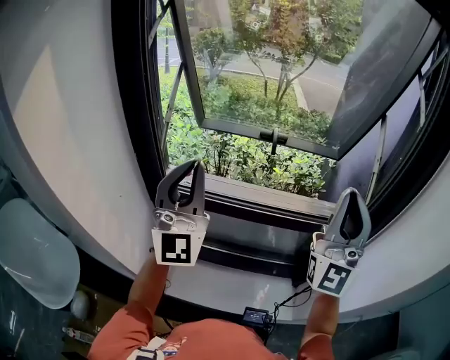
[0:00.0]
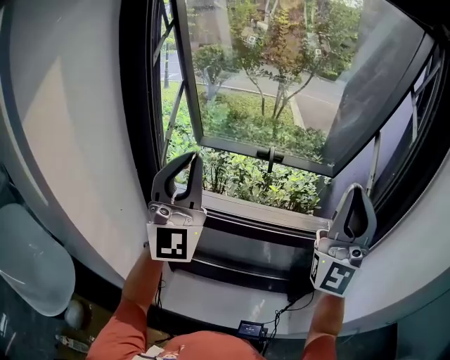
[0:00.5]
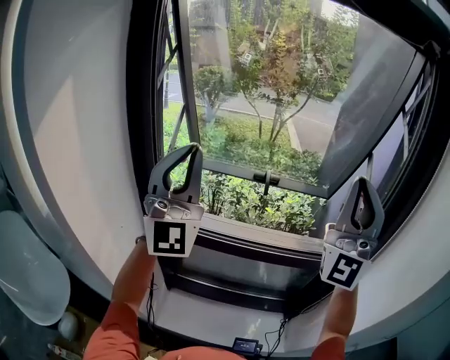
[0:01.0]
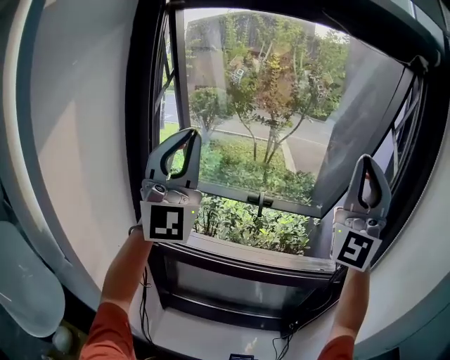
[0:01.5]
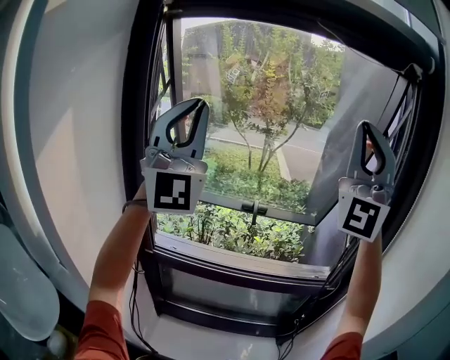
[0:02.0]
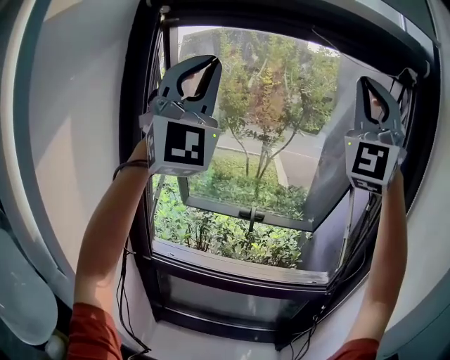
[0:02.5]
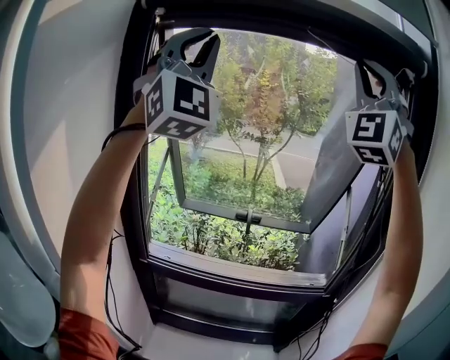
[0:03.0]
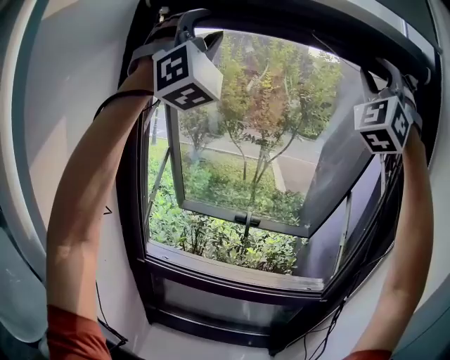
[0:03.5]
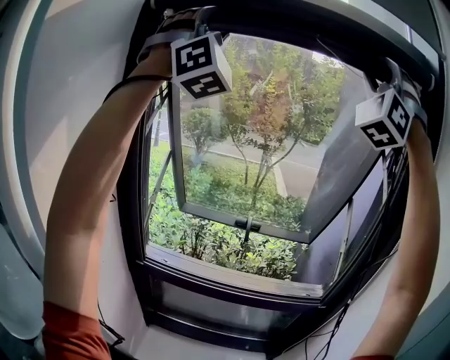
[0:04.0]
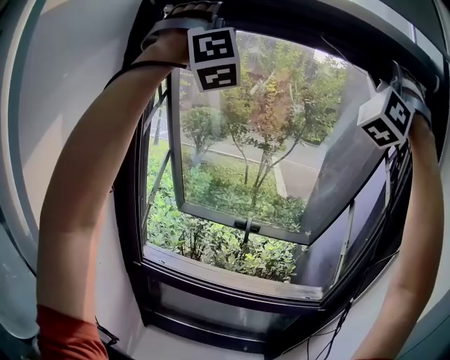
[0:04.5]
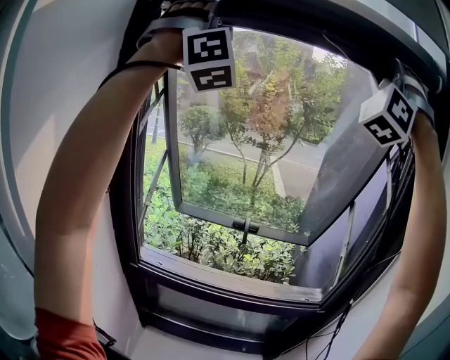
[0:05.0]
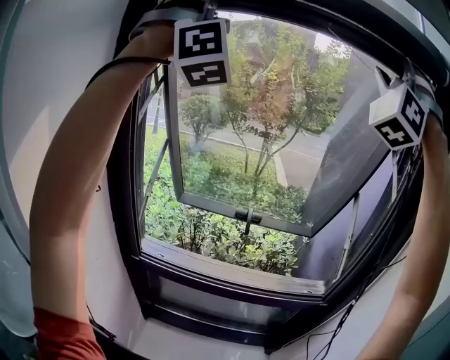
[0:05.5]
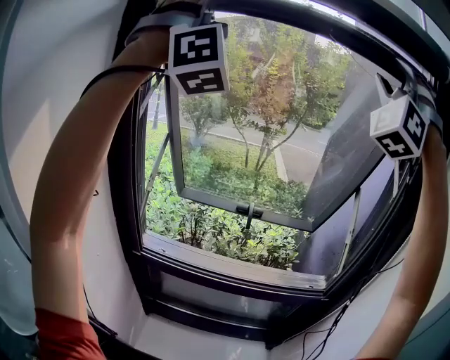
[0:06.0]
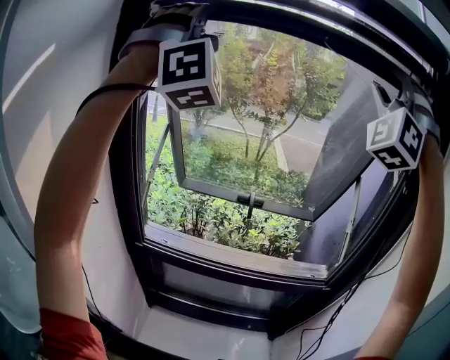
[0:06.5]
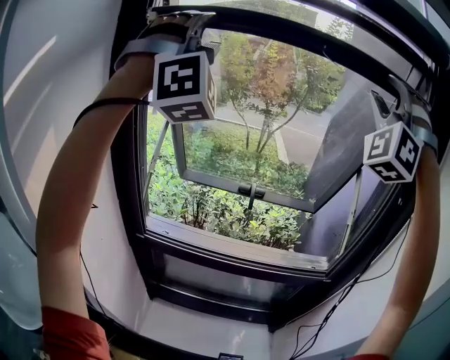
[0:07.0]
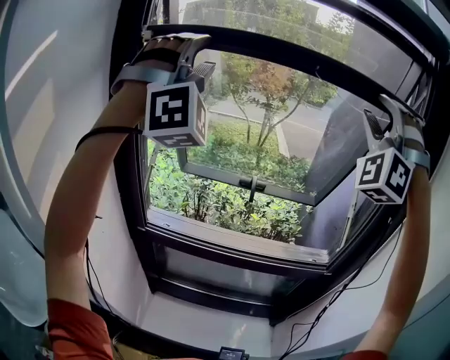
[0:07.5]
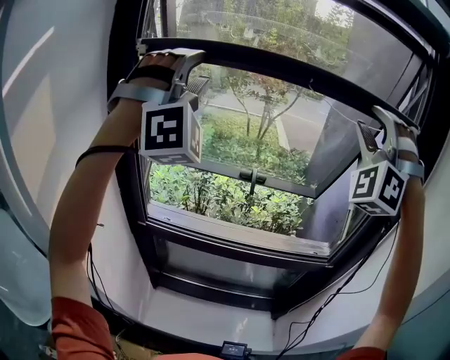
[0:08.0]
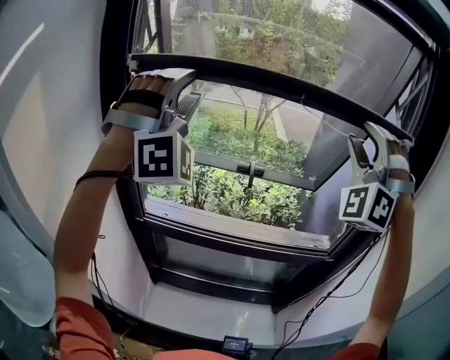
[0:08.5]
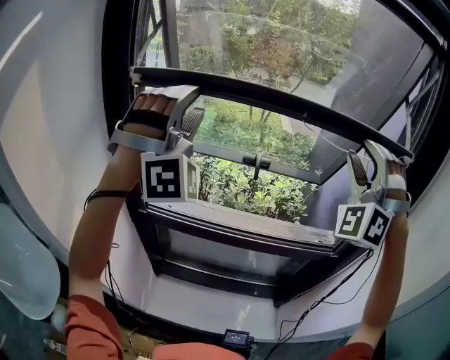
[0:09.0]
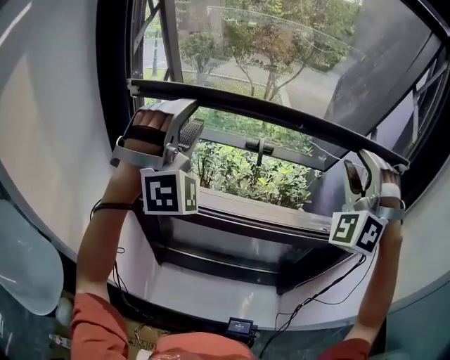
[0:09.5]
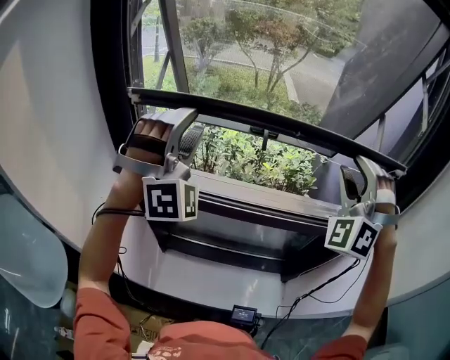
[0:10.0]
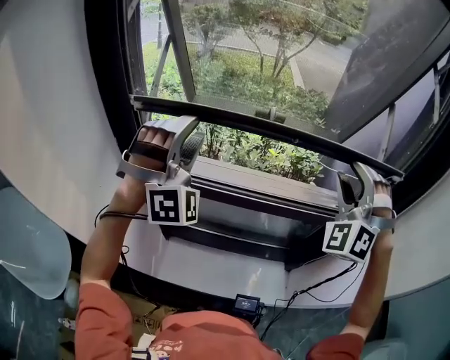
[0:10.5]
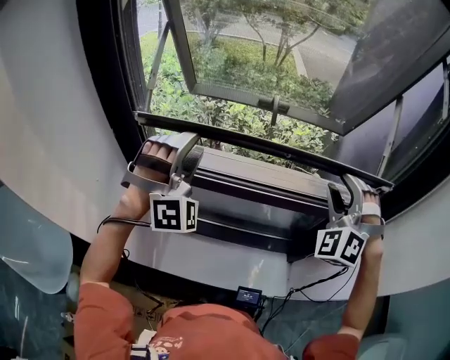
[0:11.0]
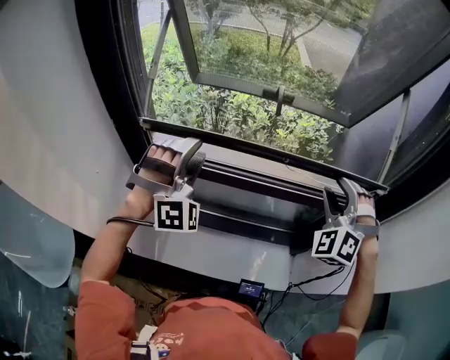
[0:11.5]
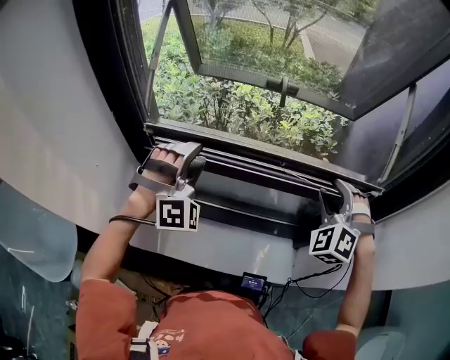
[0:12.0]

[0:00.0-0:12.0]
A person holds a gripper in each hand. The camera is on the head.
0:00.0 to 0:02.0: The grippers both shift upward by roughly 25 cm. The right gripper turns by approximately 30 degrees; the left gripper swivels roughly 20 degrees.
0:02.0 to 0:04.0: The left gripper shifts about 20 cm upward, twists about 50 degrees clockwise, seen from behind, and opens, while the right gripper moves upward and forward, approximately 20 cm, swivels roughly 40 degrees, and opens.
0:04.0 to 0:06.0: The grippers move only a little.
0:06.0 to 0:08.0: Both grippers move downward, roughly 20 cm.
0:08.0 to 0:10.0: The grippers both shift downward by about 20 cm.
0:10.0 to 0:12.0: The two grippers go some 20 cm downward. The right gripper changes its angle by about 30 degrees; the left gripper swivels approximately 20 degrees.

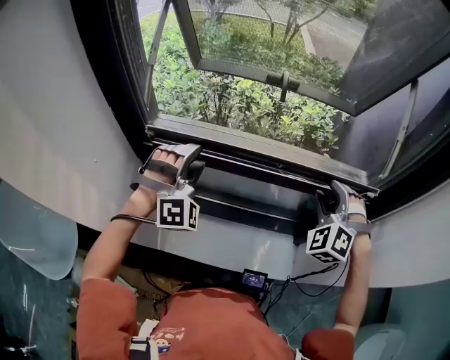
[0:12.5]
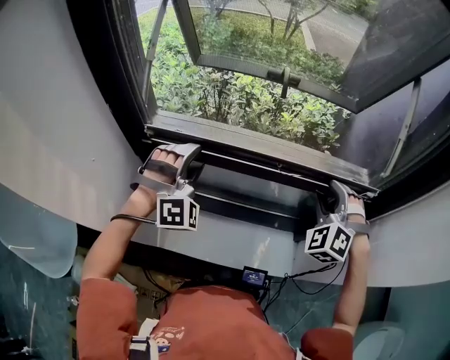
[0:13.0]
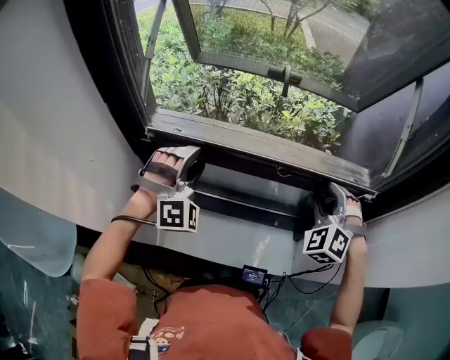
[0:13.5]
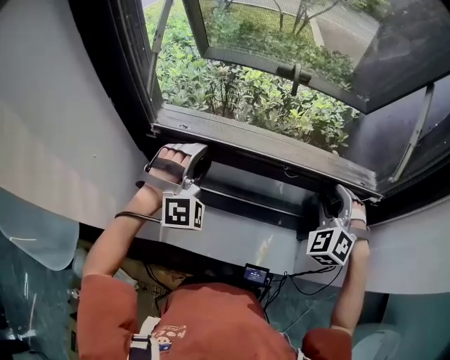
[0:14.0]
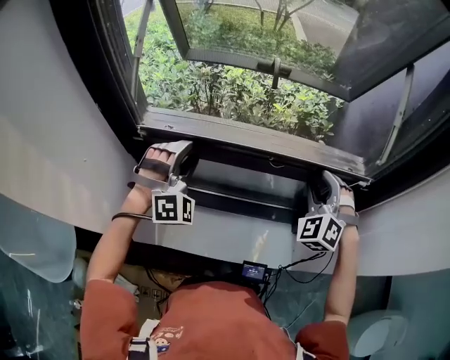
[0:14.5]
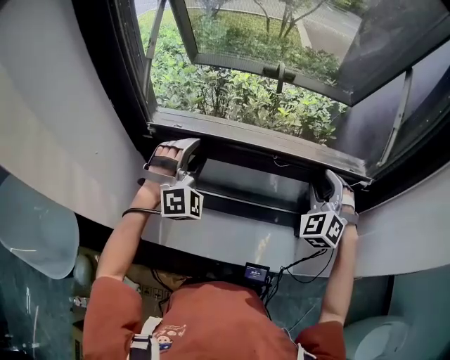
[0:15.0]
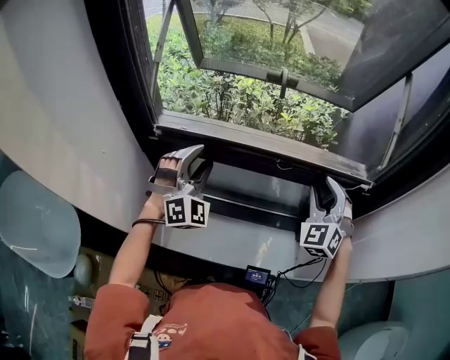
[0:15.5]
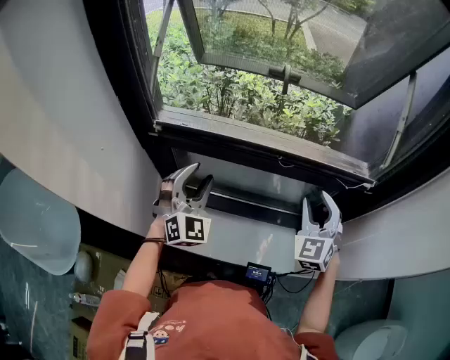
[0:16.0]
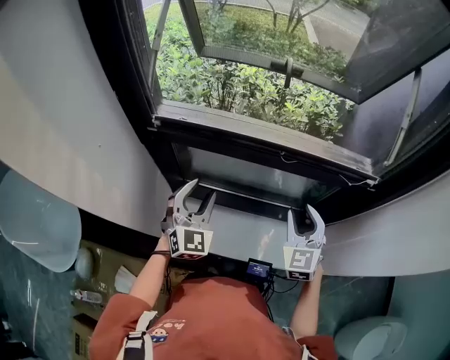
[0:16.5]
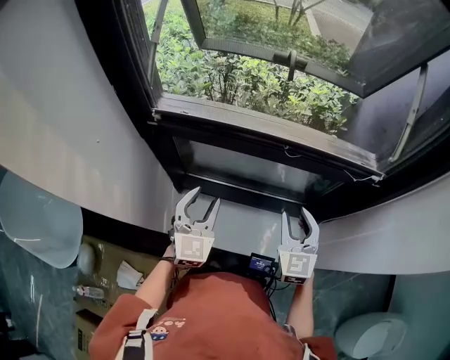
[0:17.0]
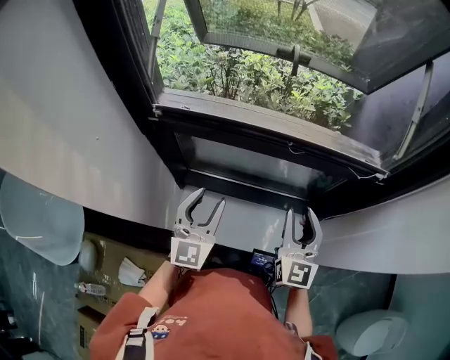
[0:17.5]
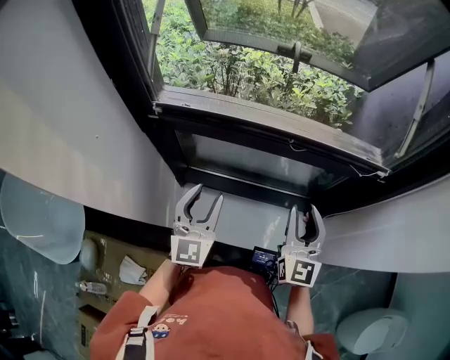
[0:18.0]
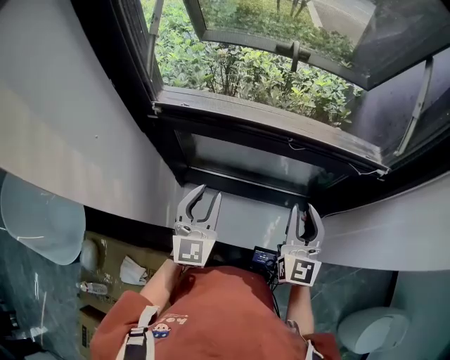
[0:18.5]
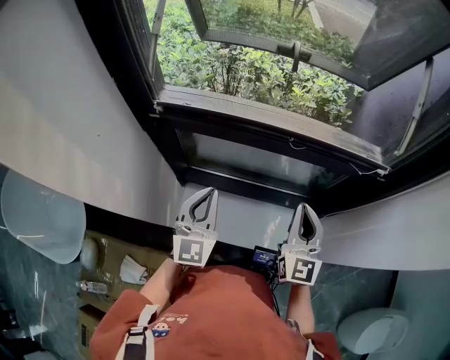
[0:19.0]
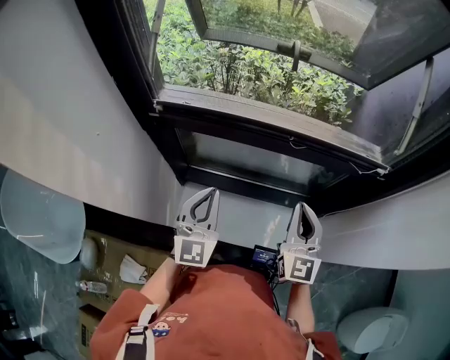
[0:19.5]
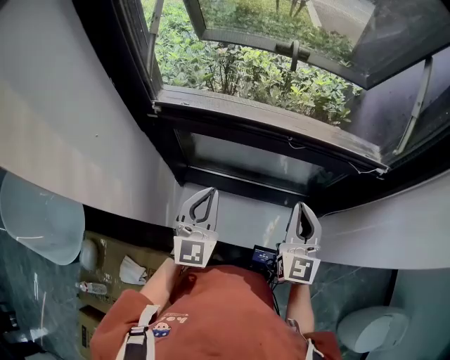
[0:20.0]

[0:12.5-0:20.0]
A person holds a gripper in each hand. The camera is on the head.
0:12.5 to 0:14.5: The grippers stay close to where they were, moving slightly.
0:14.5 to 0:16.5: The grippers both shift backward and downward by approximately 10 cm. The left gripper rotates around the line of its fingers by approximately 50 degrees, counterclockwise from behind; the right gripper turns by approximately 40 degrees.
0:16.5 to 0:18.0: The right gripper swivels some 30 degrees. Meanwhile the left gripper rotates roughly 30 degrees.
0:18.0 to 0:20.0: The left gripper closes its fingers; the right gripper closes up.

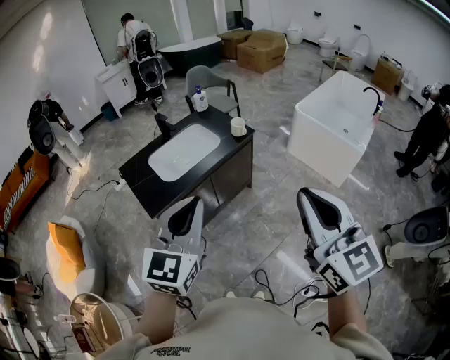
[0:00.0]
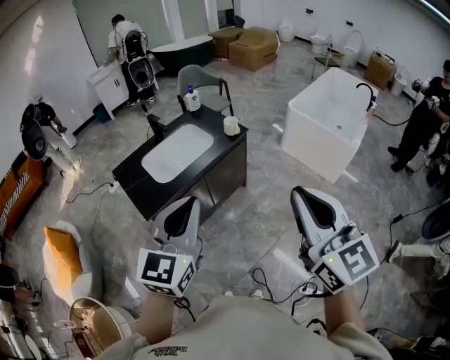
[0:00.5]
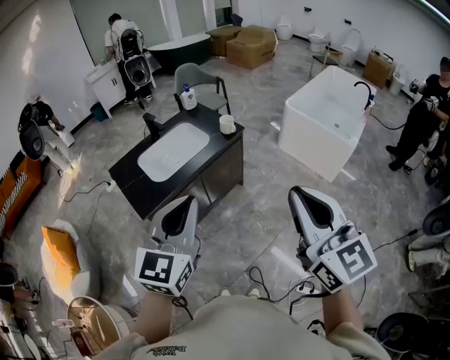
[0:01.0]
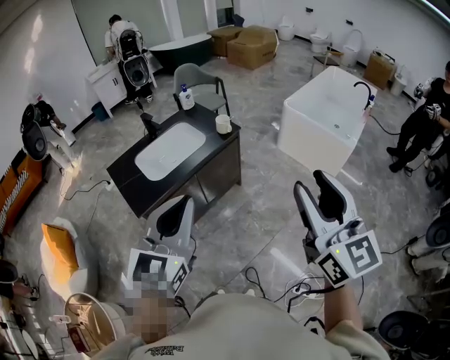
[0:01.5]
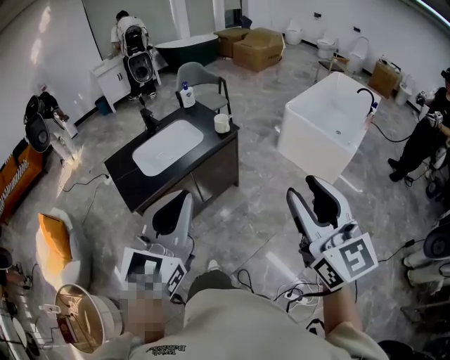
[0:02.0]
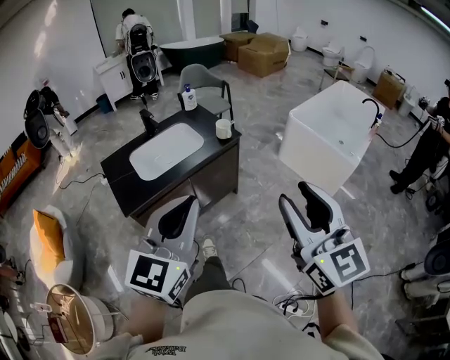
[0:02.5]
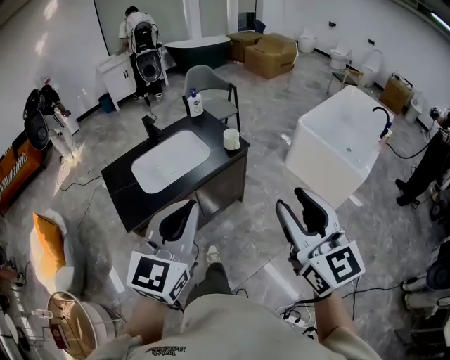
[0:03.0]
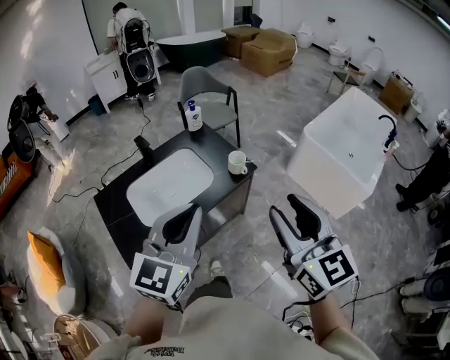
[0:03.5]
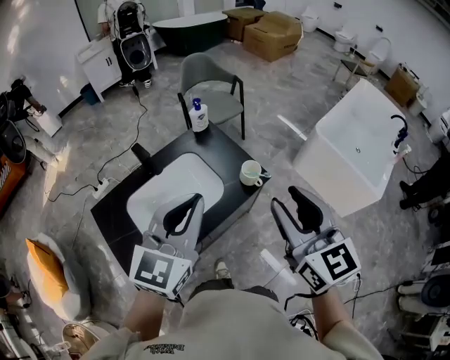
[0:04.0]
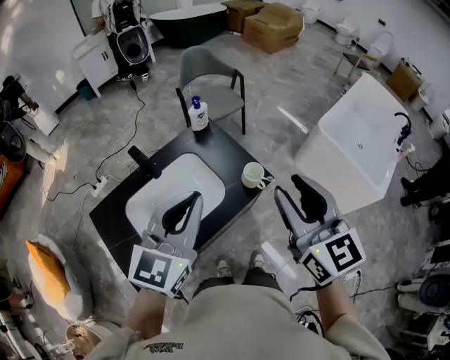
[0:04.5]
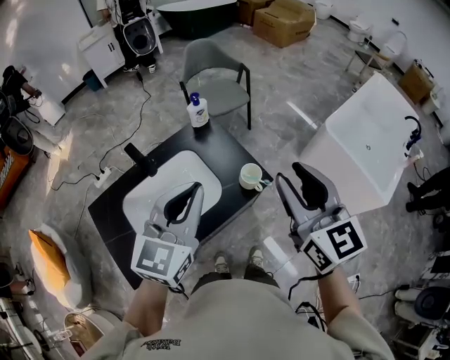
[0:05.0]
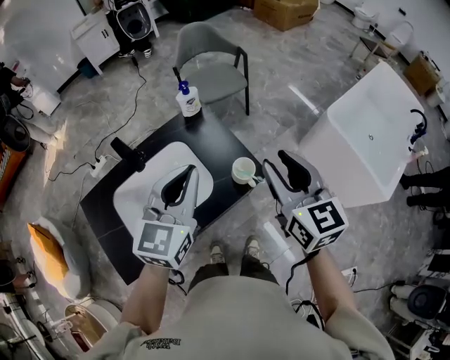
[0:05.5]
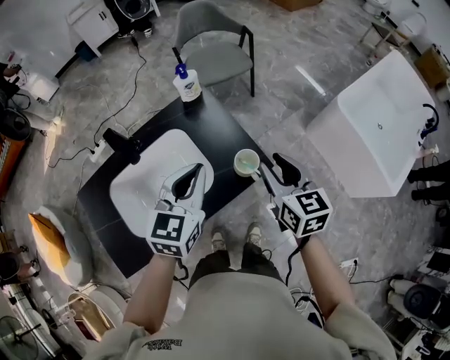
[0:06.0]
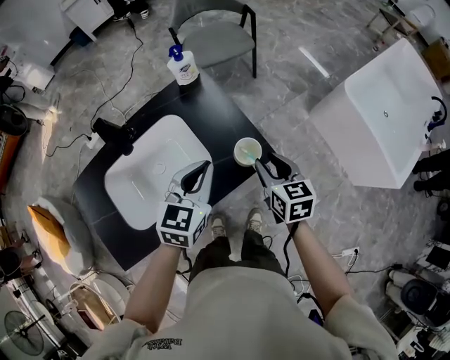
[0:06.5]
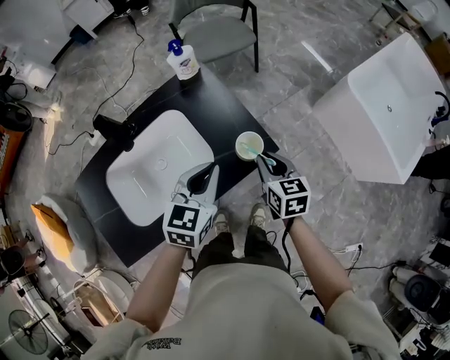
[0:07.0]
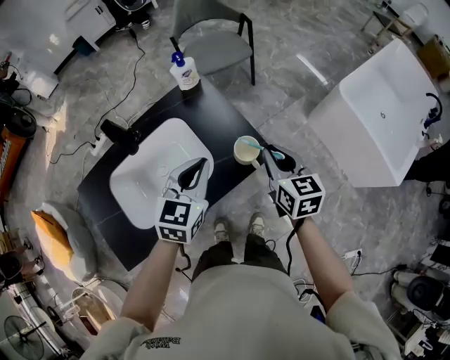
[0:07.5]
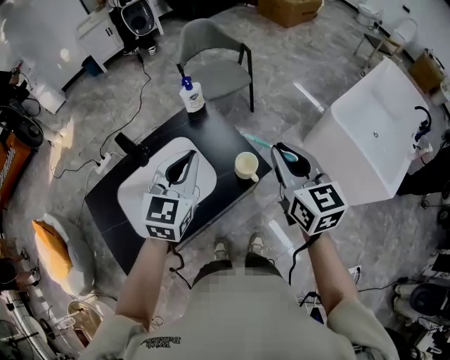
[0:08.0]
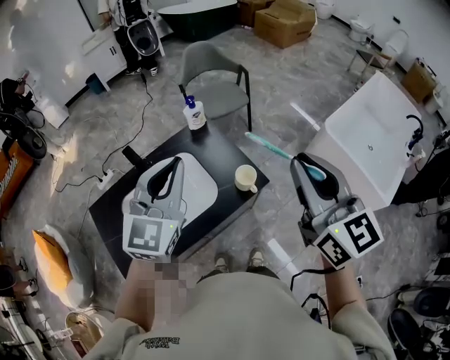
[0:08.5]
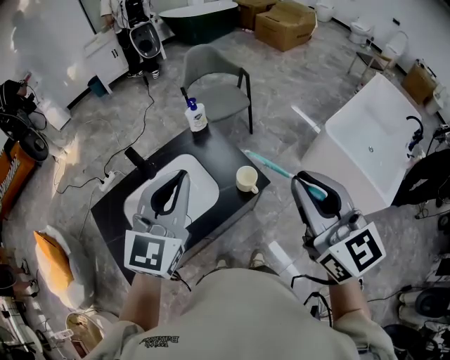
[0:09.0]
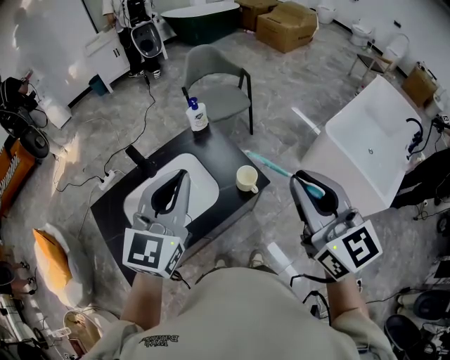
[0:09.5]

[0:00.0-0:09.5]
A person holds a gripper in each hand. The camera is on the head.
0:00.0 to 0:02.0: Both grippers travel together to the right, some 10 cm. The right gripper opens up.
0:02.0 to 0:04.0: The two grippers travel together, forward, some 50 cm.
0:04.0 to 0:05.5: The grippers both shift forward and downward by some 20 cm.
0:05.5 to 0:07.5: Both grippers travel together downward, roughly 15 cm. The right gripper closes up.
0:07.5 to 0:09.5: The right gripper heads upward and backward, covering some 30 cm, and swivels about 30 degrees, while the left gripper goes approximately 25 cm upward, and swivels some 20 degrees.
